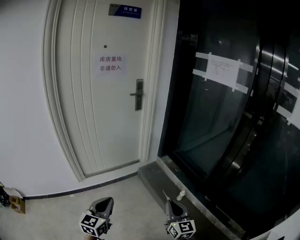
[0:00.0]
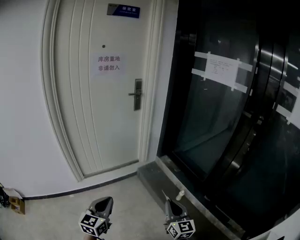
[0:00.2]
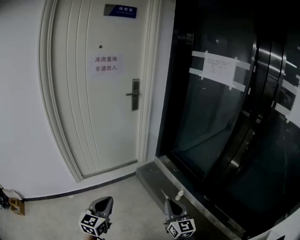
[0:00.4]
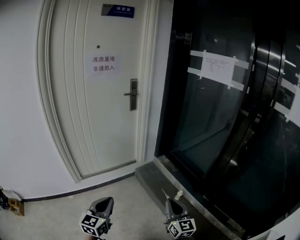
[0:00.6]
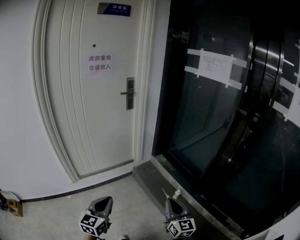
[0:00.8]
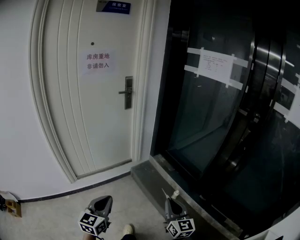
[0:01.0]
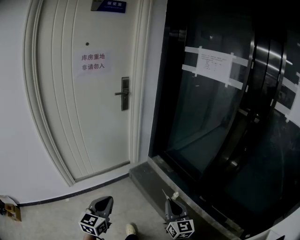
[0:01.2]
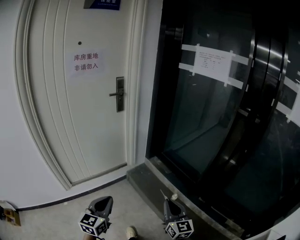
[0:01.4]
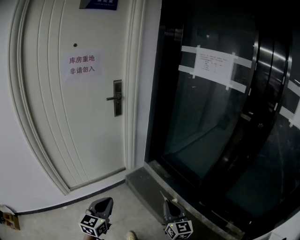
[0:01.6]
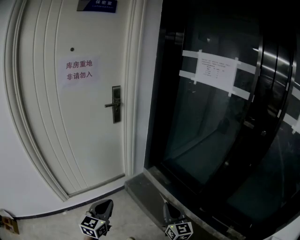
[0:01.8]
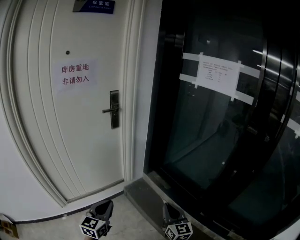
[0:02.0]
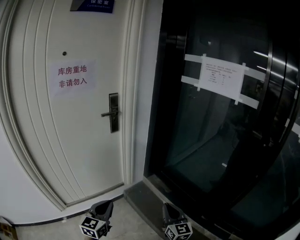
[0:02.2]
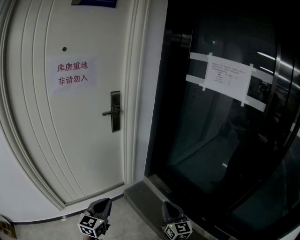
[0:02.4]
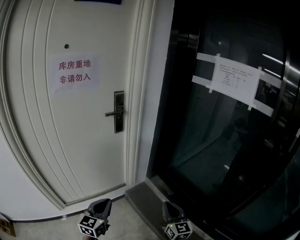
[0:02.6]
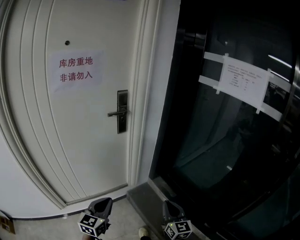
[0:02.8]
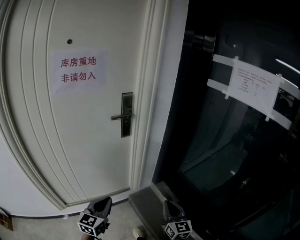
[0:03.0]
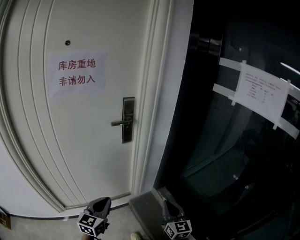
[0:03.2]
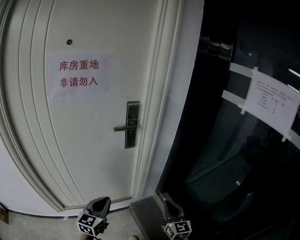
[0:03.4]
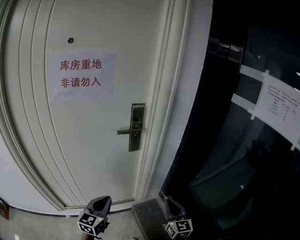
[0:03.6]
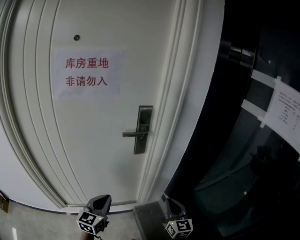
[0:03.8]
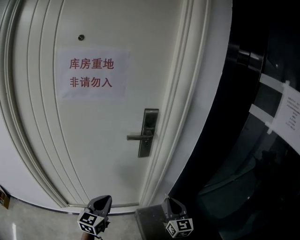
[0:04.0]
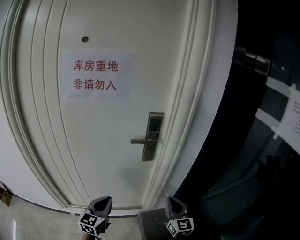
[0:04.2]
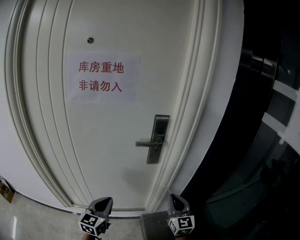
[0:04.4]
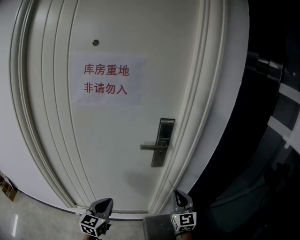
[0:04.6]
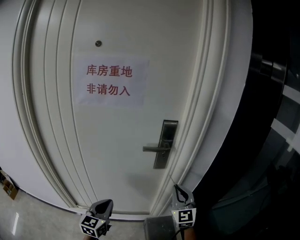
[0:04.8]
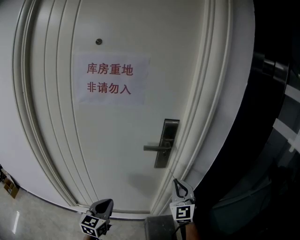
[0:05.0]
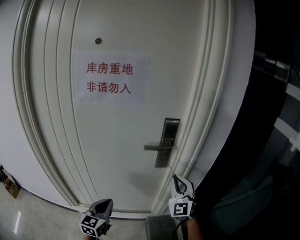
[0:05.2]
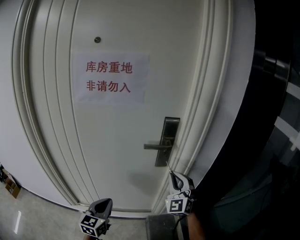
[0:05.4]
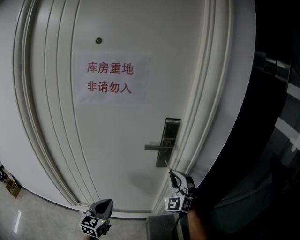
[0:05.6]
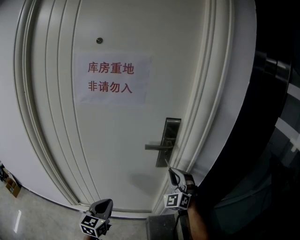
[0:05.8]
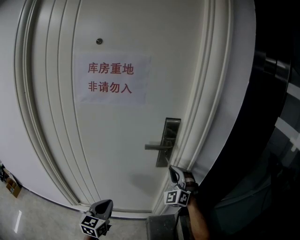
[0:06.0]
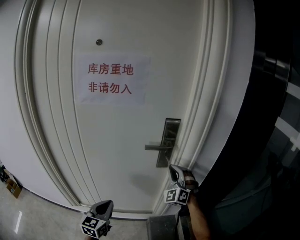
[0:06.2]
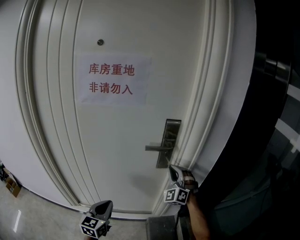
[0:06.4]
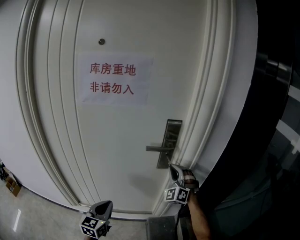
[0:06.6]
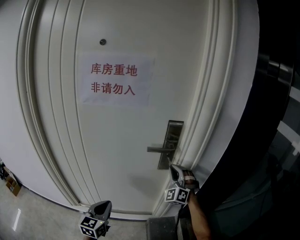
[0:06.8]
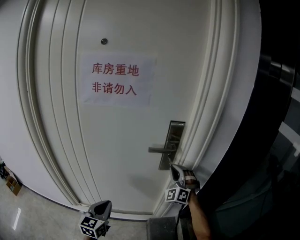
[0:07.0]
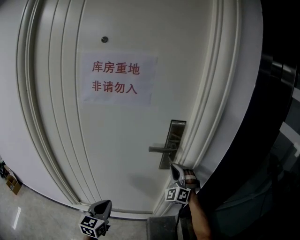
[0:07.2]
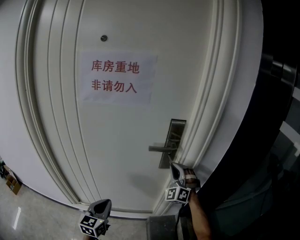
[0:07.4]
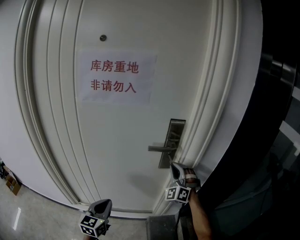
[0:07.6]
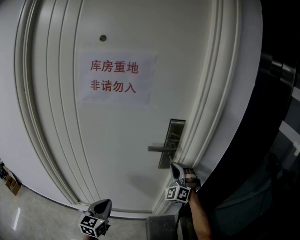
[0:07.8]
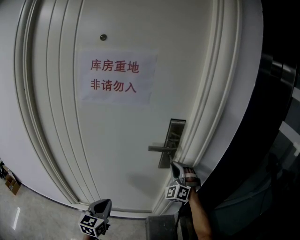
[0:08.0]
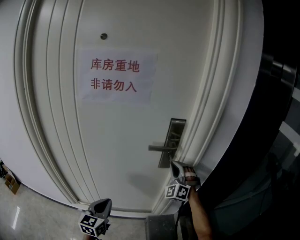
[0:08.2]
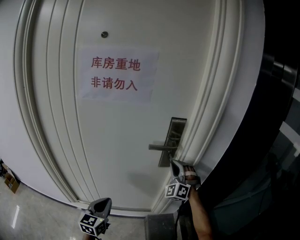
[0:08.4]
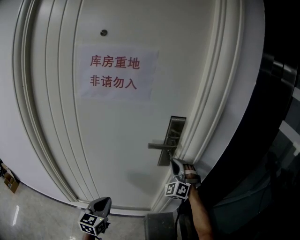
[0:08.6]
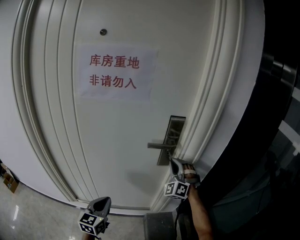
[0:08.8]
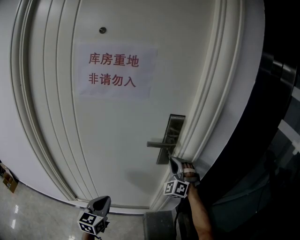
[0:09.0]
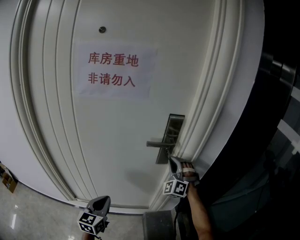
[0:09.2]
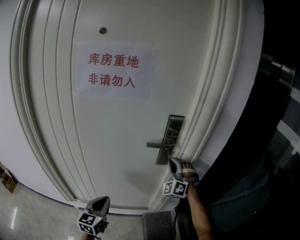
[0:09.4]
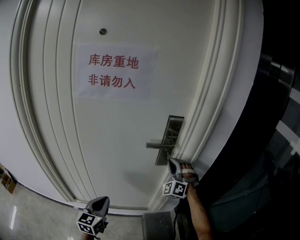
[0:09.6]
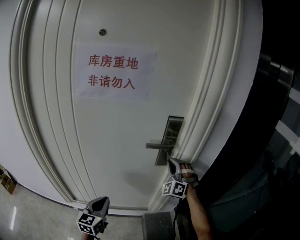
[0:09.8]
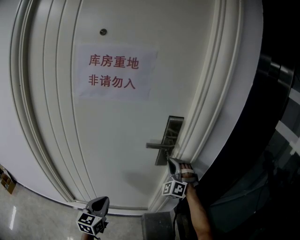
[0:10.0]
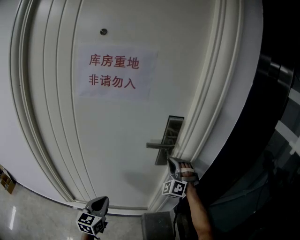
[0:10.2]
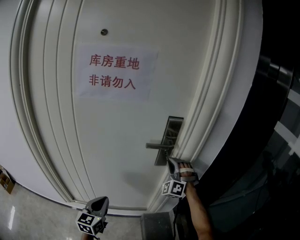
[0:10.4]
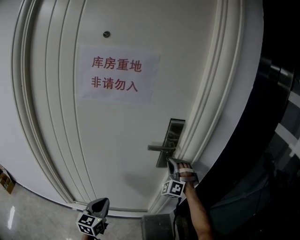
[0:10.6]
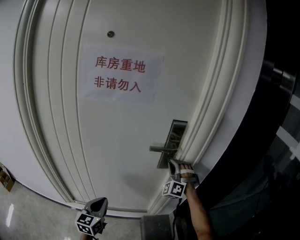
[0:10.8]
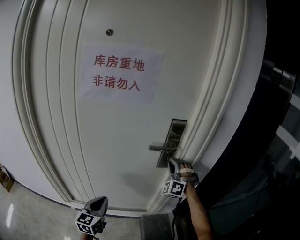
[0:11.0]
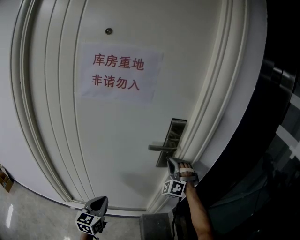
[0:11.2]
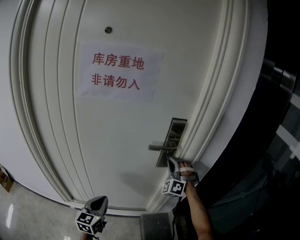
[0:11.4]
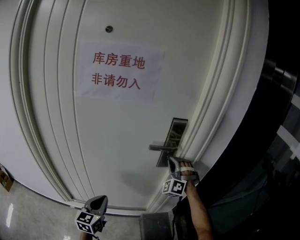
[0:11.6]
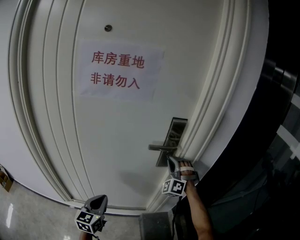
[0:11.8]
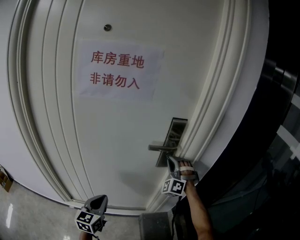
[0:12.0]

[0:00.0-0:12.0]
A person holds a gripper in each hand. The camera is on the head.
0:00.0 to 0:01.6: The two grippers go approximately 15 cm forward.
0:01.6 to 0:03.0: The grippers both shift forward by approximately 30 cm.
0:03.0 to 0:04.4: The right gripper heads forward, covering roughly 30 cm, and rotates some 20 degrees; the left gripper moves forward, roughly 15 cm, and changes its angle by about 20 degrees.
0:04.4 to 0:06.0: The right gripper travels forward, to the left and upward by about 15 cm, and twists some 60 degrees counterclockwise, seen from behind.
0:06.0 to 0:09.0: The grippers make only small movements.
0:09.0 to 0:12.0: The grippers make only small movements.

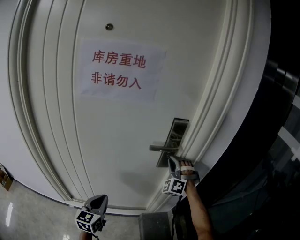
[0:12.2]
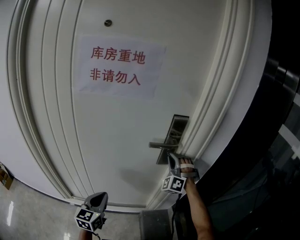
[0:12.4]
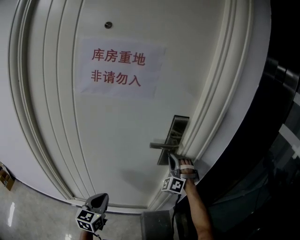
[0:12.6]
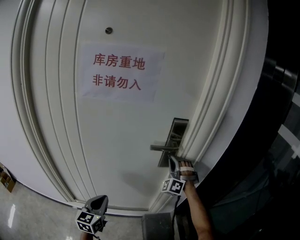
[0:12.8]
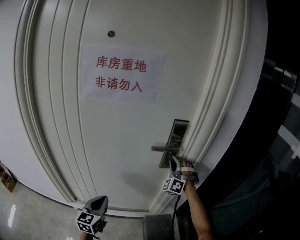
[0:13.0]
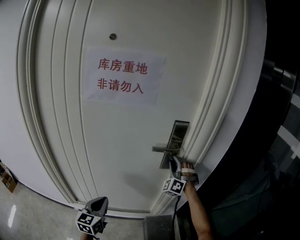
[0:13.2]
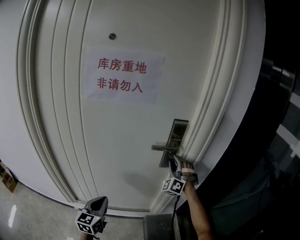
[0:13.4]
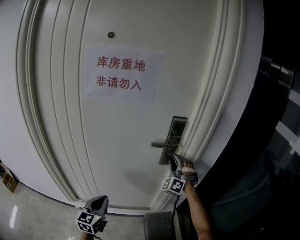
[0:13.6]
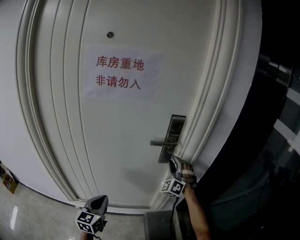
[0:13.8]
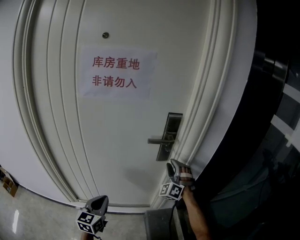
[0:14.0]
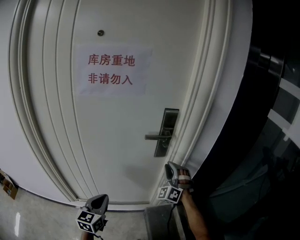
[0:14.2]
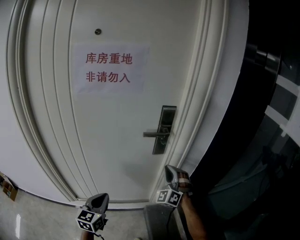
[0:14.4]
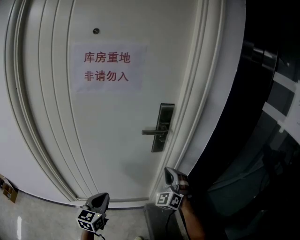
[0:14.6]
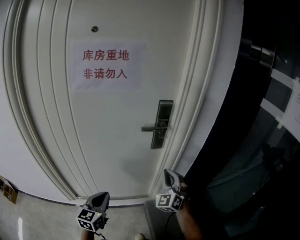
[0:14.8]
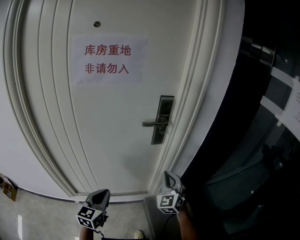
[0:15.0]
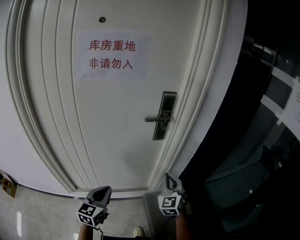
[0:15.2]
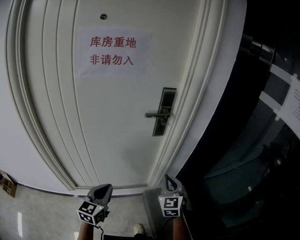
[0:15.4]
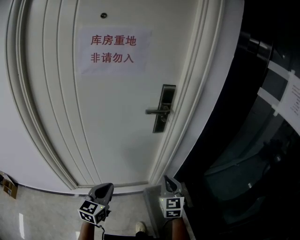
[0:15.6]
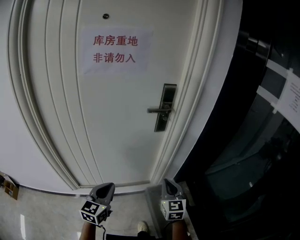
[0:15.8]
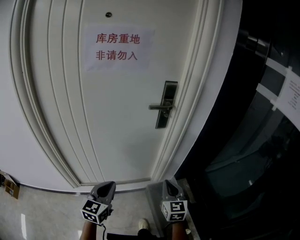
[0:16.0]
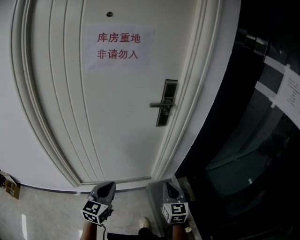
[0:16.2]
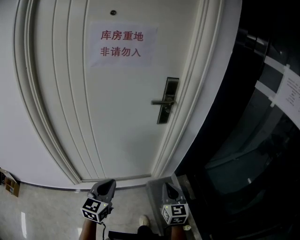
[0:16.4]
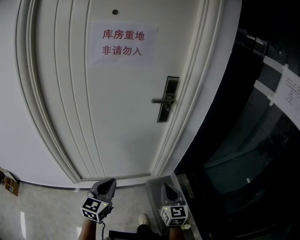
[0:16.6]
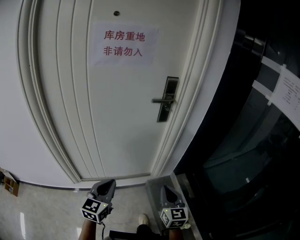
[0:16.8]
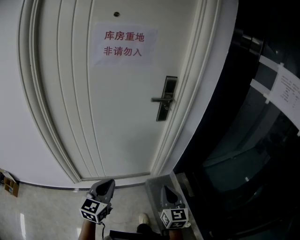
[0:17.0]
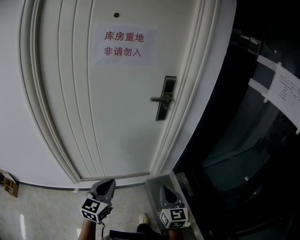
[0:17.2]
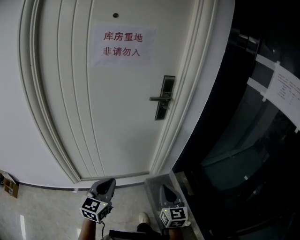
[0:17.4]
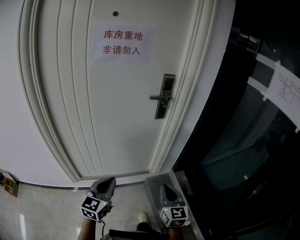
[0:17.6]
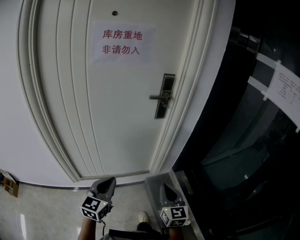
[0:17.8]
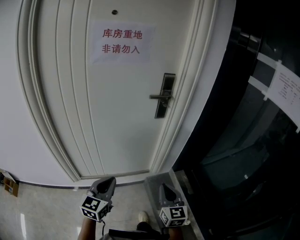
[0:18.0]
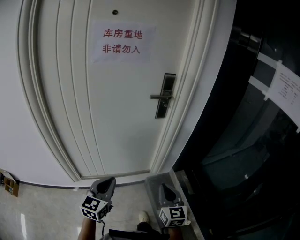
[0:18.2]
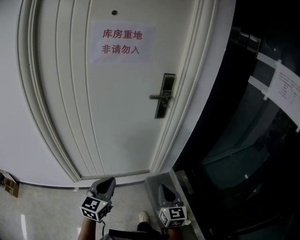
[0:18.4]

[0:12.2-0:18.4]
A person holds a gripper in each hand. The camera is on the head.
0:12.2 to 0:13.8: The right gripper opens up.
0:13.8 to 0:15.4: The left gripper travels backward by roughly 5 cm. Meanwhile the right gripper travels backward by roughly 25 cm, twists approximately 50 degrees clockwise, seen from behind, and closes its fingers.
0:15.4 to 0:16.8: The left gripper travels backward by roughly 10 cm, while the right gripper moves backward, some 15 cm, and turns by some 20 degrees.
0:16.8 to 0:18.4: The grippers make only small movements.

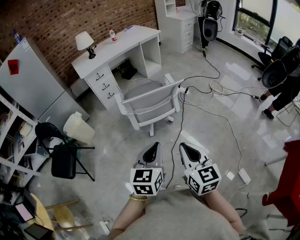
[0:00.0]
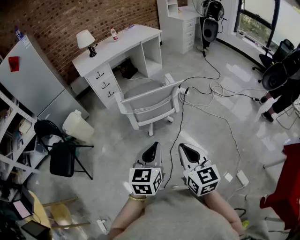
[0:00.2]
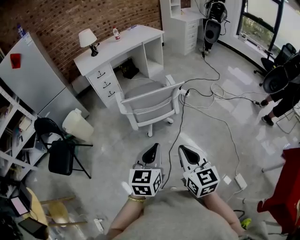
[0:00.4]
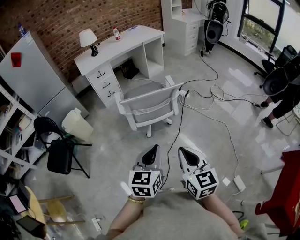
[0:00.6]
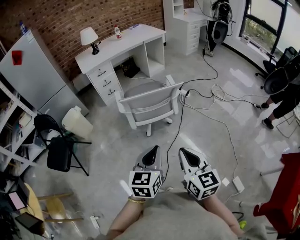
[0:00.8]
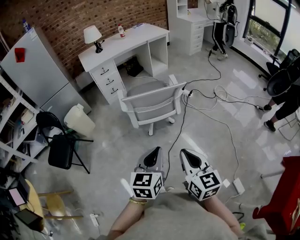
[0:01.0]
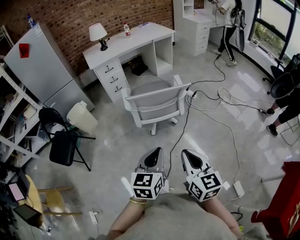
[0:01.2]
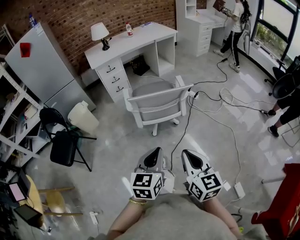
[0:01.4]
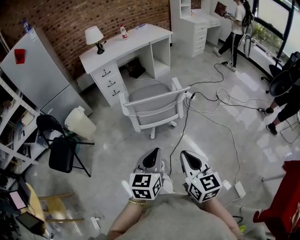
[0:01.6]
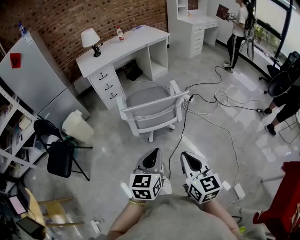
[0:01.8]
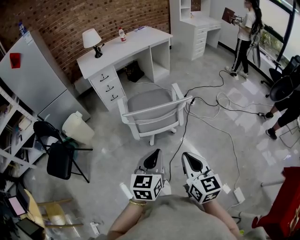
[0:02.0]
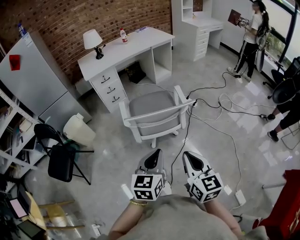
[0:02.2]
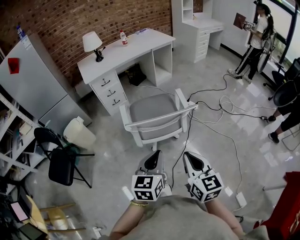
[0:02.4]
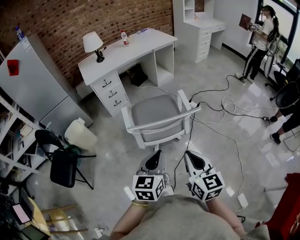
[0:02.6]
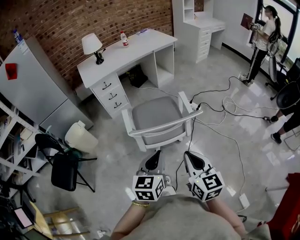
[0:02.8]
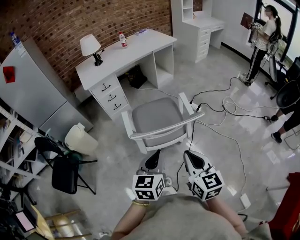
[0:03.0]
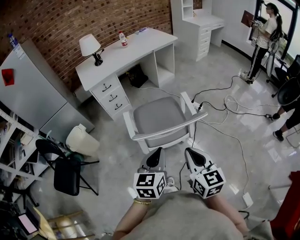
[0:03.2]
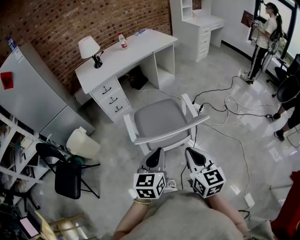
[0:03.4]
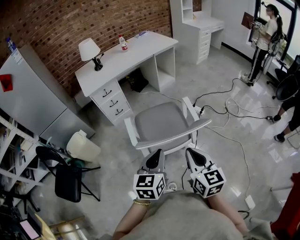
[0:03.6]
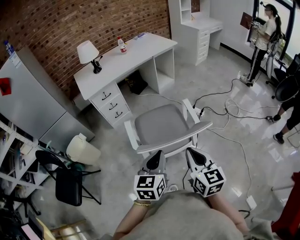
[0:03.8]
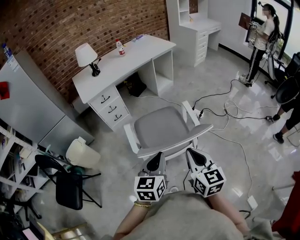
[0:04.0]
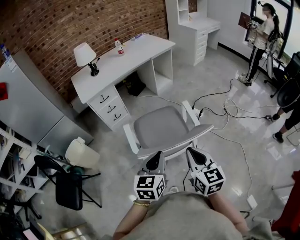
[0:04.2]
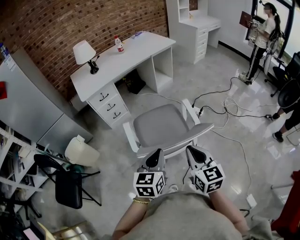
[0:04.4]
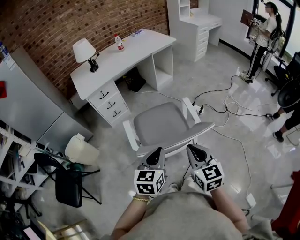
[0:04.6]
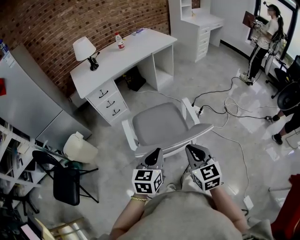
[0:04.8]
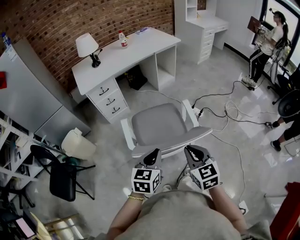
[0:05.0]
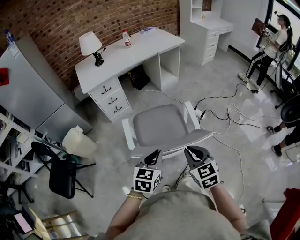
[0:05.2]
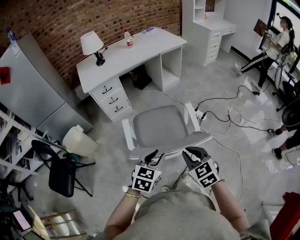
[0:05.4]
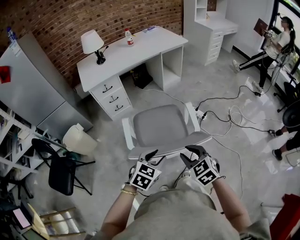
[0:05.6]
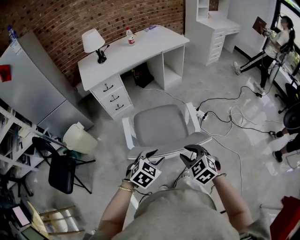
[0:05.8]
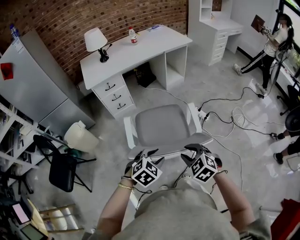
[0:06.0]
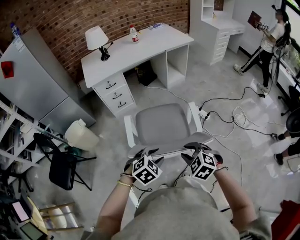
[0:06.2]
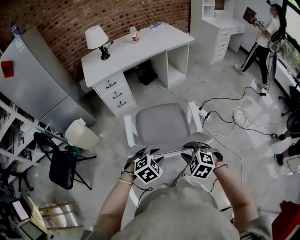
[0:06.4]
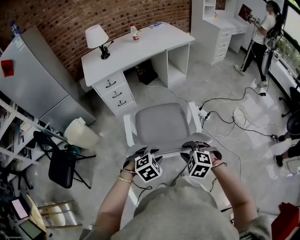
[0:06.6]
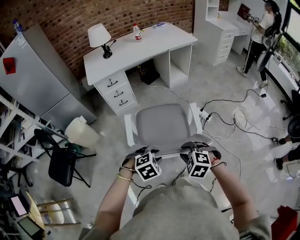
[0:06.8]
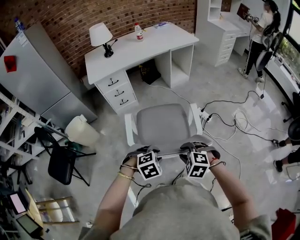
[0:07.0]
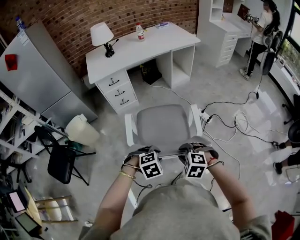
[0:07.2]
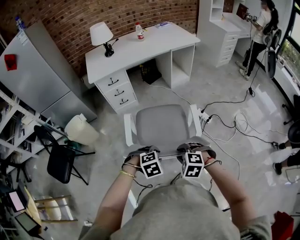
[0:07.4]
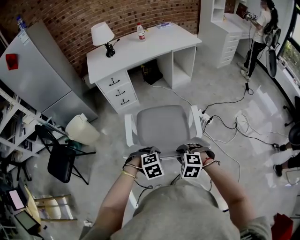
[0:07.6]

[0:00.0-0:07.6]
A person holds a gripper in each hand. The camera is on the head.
0:00.0 to 0:01.6: There are only small adjustments of the grippers.
0:01.6 to 0:03.0: Both grippers travel together forward, approximately 20 cm.
0:03.0 to 0:04.6: The two grippers go some 10 cm forward.
0:04.6 to 0:06.0: Both grippers move downward, roughly 10 cm. The left gripper turns by about 40 degrees, and opens up. Meanwhile the right gripper turns by about 50 degrees, and opens up.
0:06.0 to 0:07.6: The two grippers go approximately 5 cm downward. The right gripper rotates roughly 30 degrees. Meanwhile the left gripper swivels about 30 degrees.
